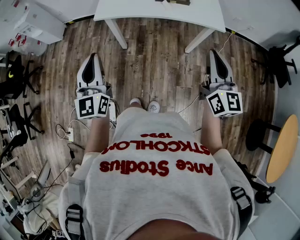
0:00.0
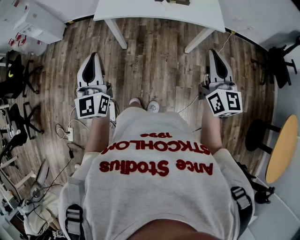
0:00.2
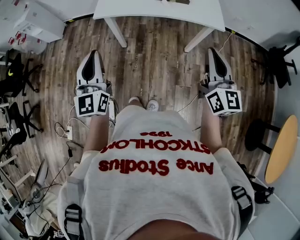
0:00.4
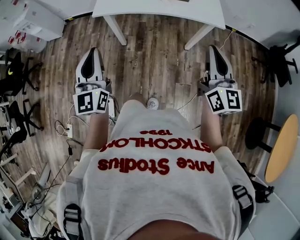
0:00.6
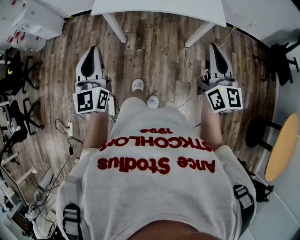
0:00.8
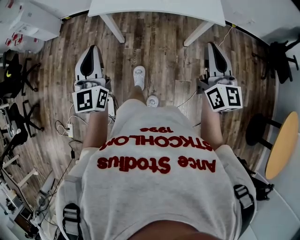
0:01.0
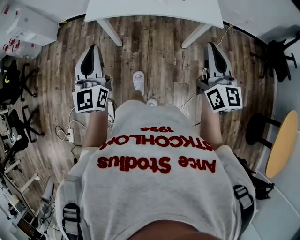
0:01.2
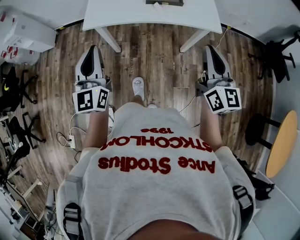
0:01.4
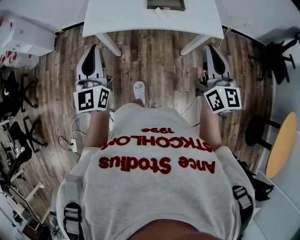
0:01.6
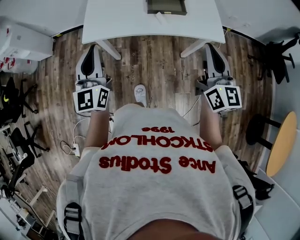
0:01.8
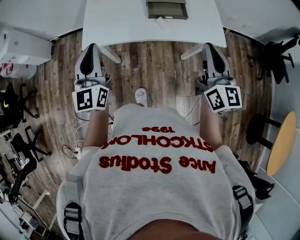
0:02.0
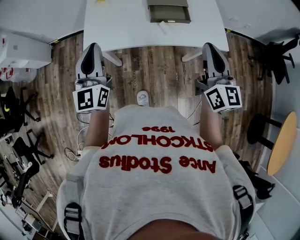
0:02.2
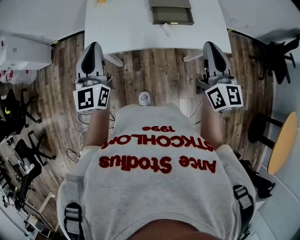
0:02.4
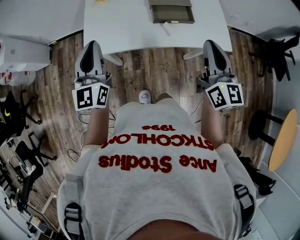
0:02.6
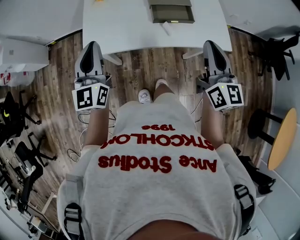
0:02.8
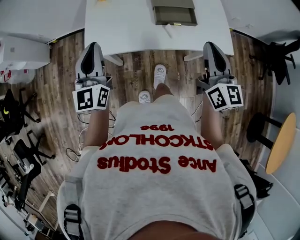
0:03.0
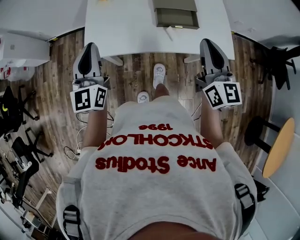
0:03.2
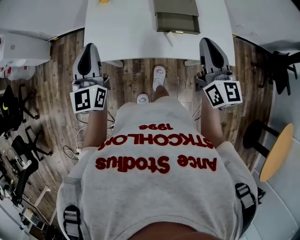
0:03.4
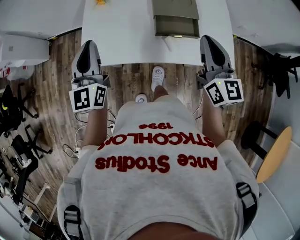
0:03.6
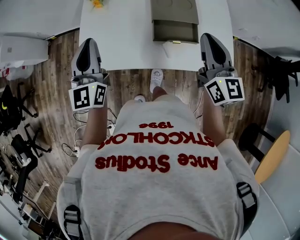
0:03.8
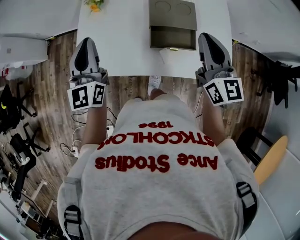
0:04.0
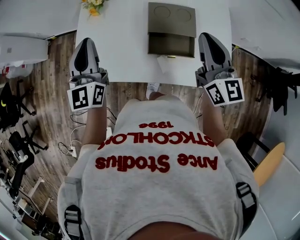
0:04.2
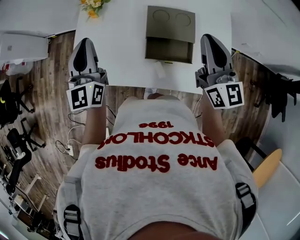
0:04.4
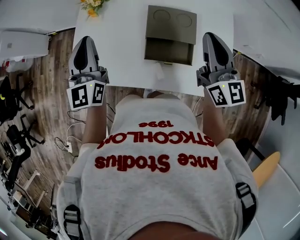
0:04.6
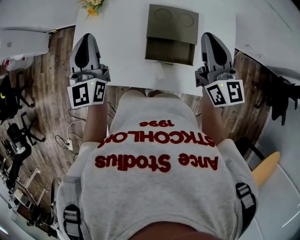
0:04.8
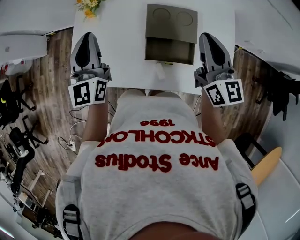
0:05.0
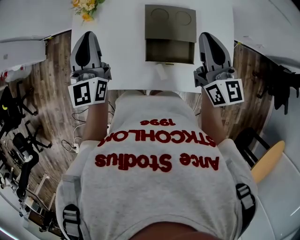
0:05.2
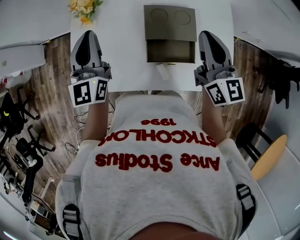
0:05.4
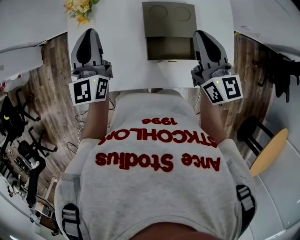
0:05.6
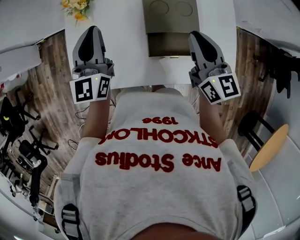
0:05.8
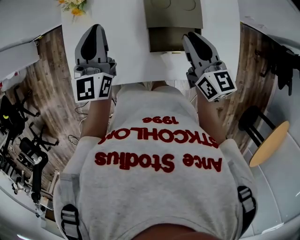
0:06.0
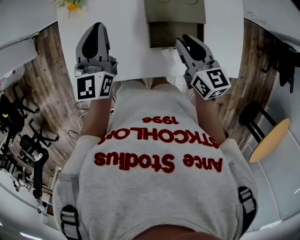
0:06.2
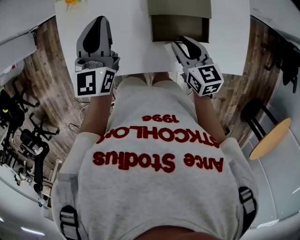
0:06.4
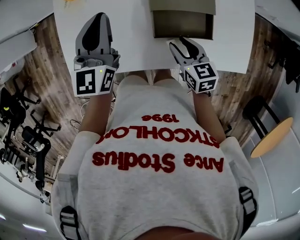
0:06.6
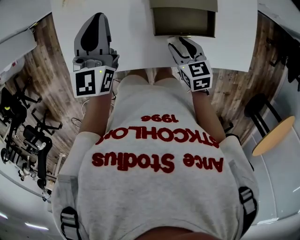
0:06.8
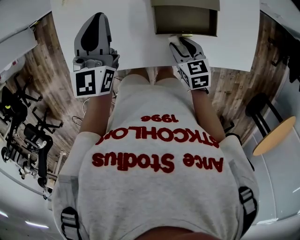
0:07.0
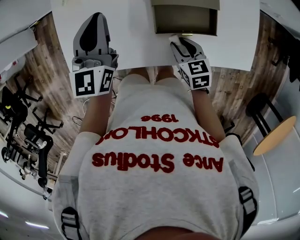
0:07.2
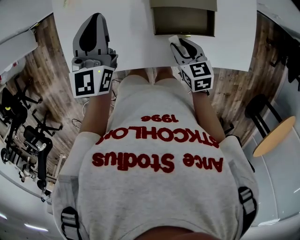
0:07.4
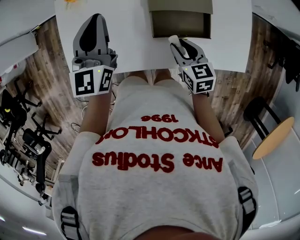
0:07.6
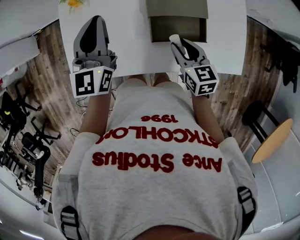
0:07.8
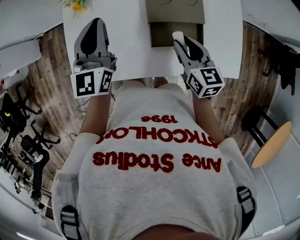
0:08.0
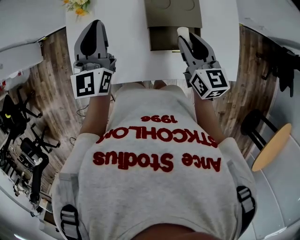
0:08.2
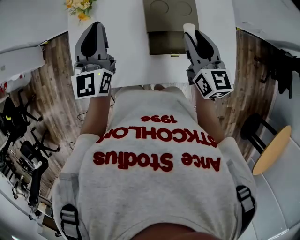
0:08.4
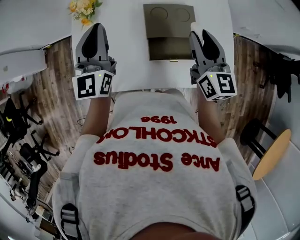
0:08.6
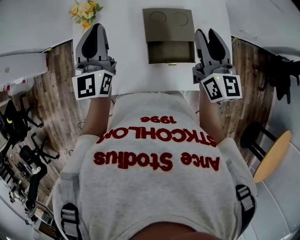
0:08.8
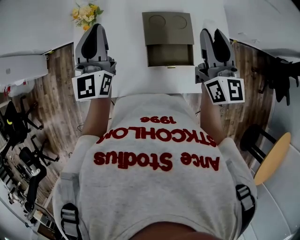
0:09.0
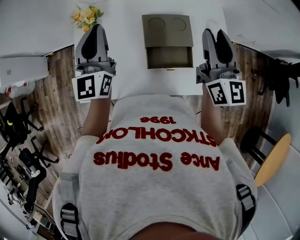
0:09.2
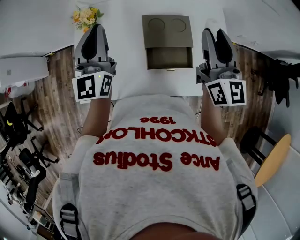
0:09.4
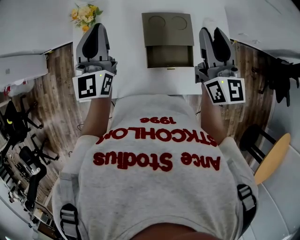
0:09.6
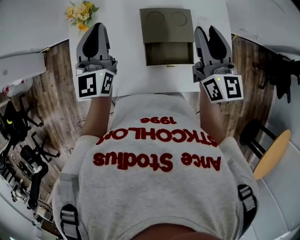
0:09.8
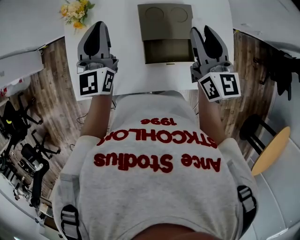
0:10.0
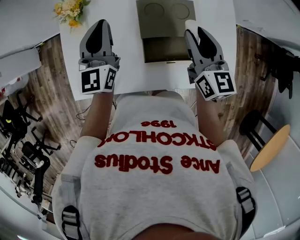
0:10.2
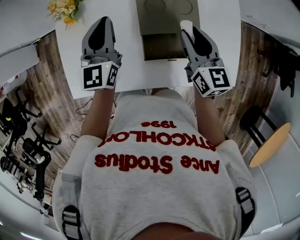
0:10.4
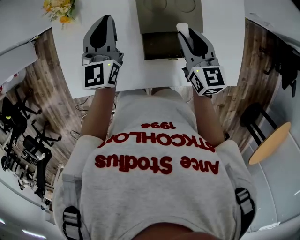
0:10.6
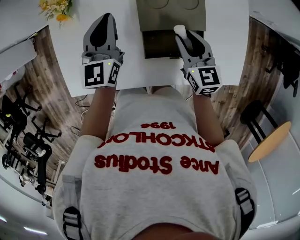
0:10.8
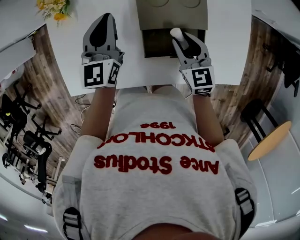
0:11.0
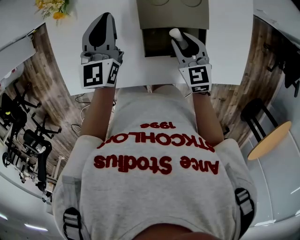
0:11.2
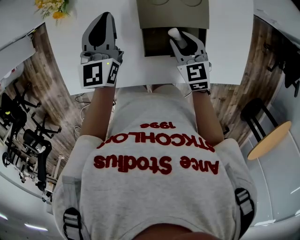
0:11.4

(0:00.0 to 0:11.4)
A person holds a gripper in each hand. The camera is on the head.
0:00.0 - 0:01.4: The grippers both shift forward by about 10 cm.
0:01.4 - 0:02.8: Both grippers move forward, some 20 cm.
0:02.8 - 0:04.2: The left gripper goes about 20 cm forward and to the right. Meanwhile the right gripper shifts some 25 cm forward.
0:04.2 - 0:05.6: The right gripper heads forward, covering roughly 5 cm; the left gripper shifts approximately 10 cm forward.
0:05.6 - 0:07.2: The left gripper goes roughly 10 cm downward. The right gripper is displaced downward and backward by roughly 30 cm, tips its fingers downward by roughly 40 degrees, and opens.
0:07.2 - 0:08.6: The left gripper heads upward, covering about 10 cm, while the right gripper moves upward and forward, some 25 cm, and tilts its fingers approximately 40 degrees upward.
0:08.6 - 0:10.0: The right gripper reaches approximately 10 cm upward, then returns. Meanwhile the left gripper shifts by approximately 5 cm.
0:10.0 - 0:11.4: The right gripper moves downward, some 25 cm, and tips its fingers downward by about 30 degrees. Meanwhile the left gripper travels downward by some 10 cm.

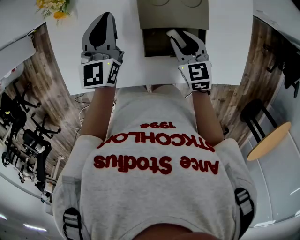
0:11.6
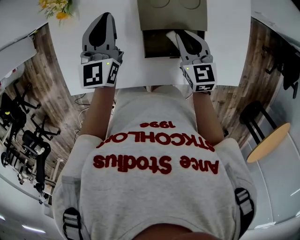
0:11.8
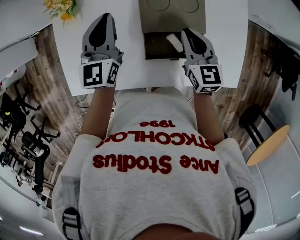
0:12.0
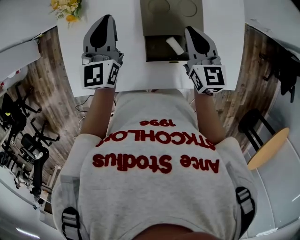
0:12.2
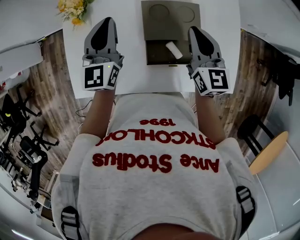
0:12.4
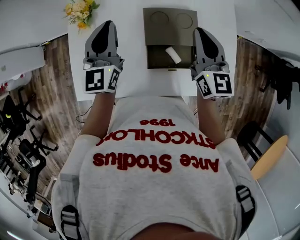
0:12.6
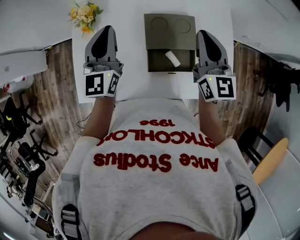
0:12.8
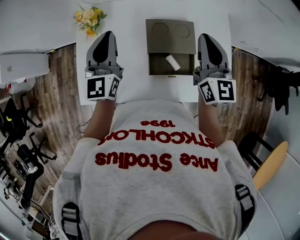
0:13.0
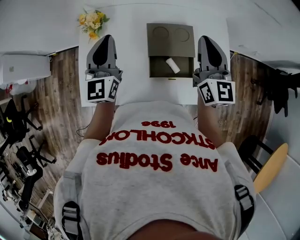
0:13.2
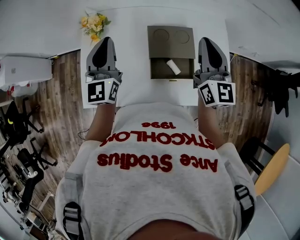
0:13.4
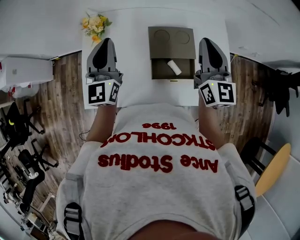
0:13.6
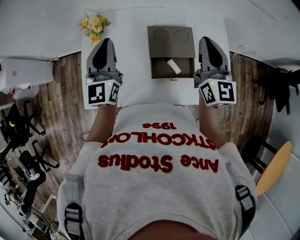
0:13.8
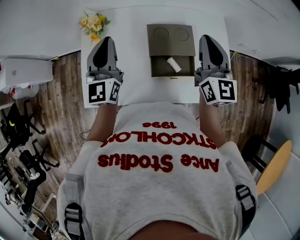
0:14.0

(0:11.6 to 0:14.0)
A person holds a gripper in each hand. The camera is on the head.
0:11.6 - 0:12.8: The left gripper travels upward by some 10 cm. Meanwhile the right gripper is displaced upward by approximately 25 cm, tilts its fingers some 40 degrees upward, and closes.
0:12.8 - 0:14.0: The grippers make only small movements.

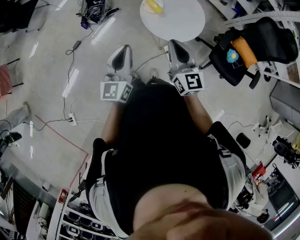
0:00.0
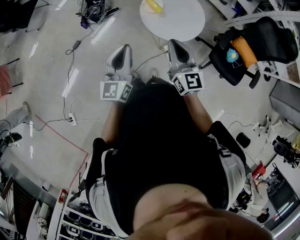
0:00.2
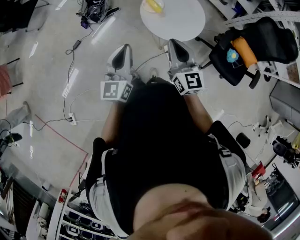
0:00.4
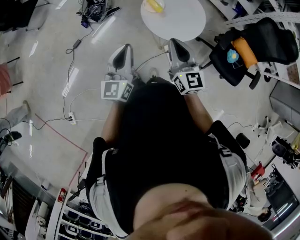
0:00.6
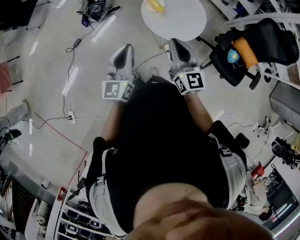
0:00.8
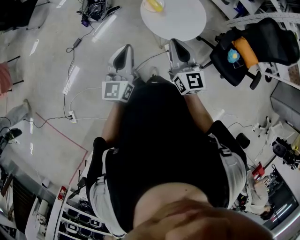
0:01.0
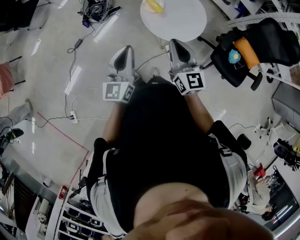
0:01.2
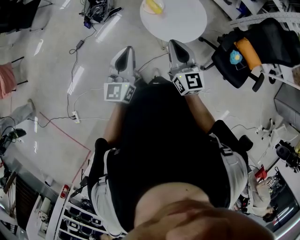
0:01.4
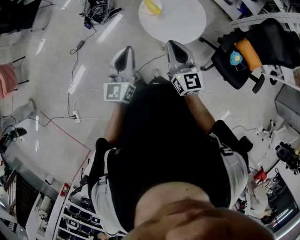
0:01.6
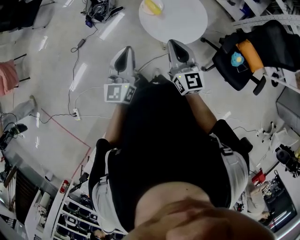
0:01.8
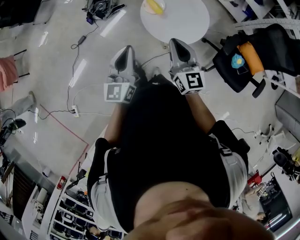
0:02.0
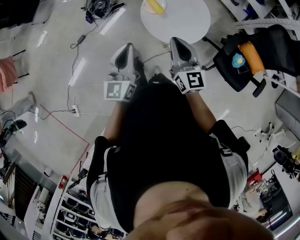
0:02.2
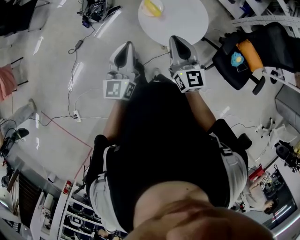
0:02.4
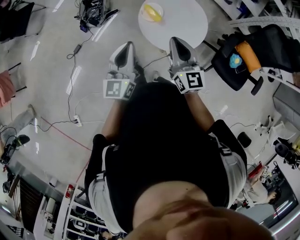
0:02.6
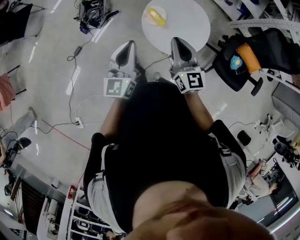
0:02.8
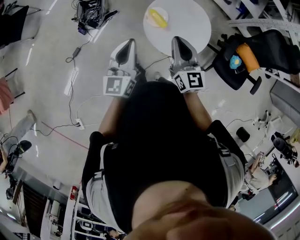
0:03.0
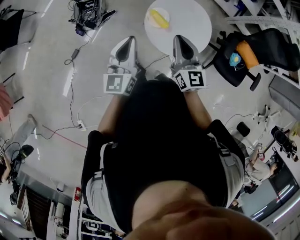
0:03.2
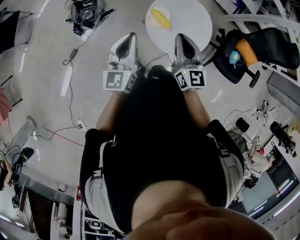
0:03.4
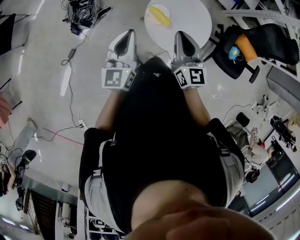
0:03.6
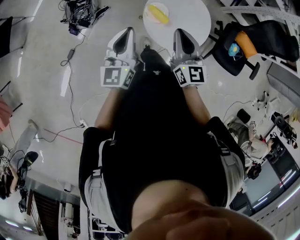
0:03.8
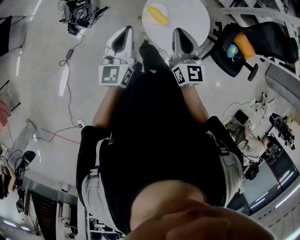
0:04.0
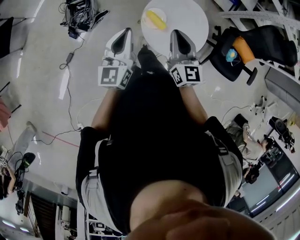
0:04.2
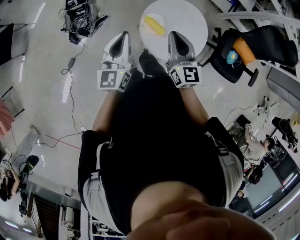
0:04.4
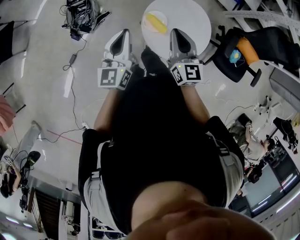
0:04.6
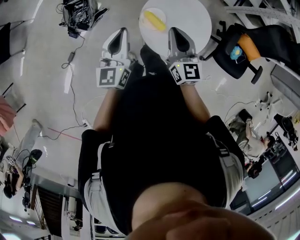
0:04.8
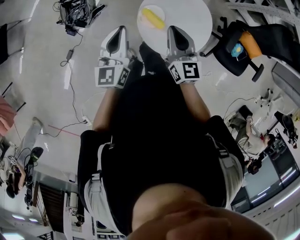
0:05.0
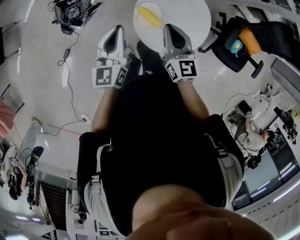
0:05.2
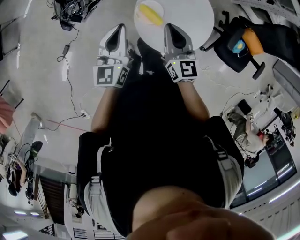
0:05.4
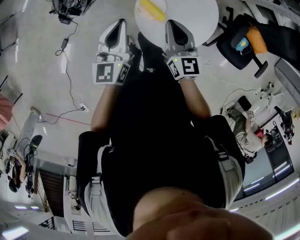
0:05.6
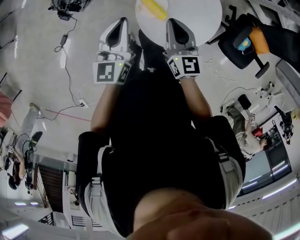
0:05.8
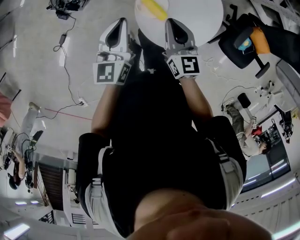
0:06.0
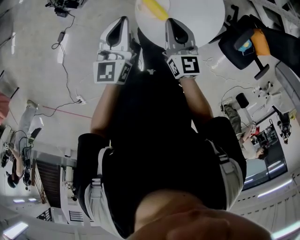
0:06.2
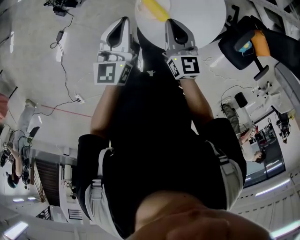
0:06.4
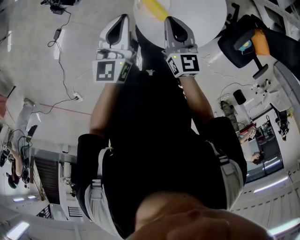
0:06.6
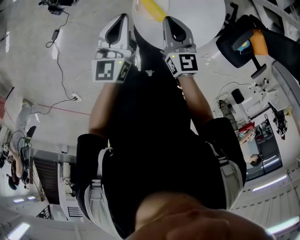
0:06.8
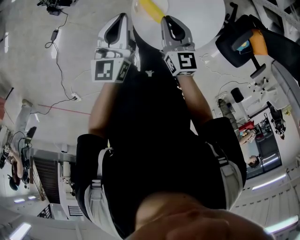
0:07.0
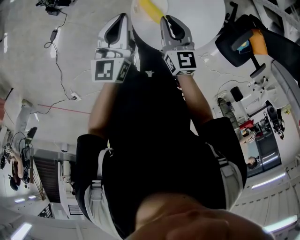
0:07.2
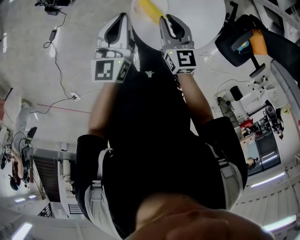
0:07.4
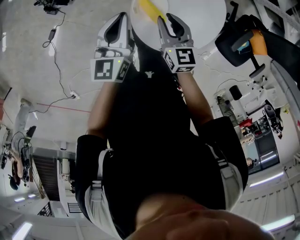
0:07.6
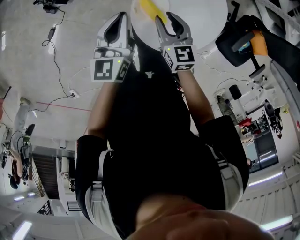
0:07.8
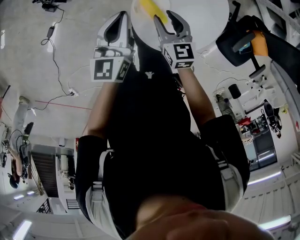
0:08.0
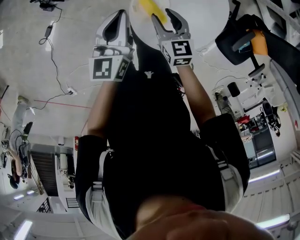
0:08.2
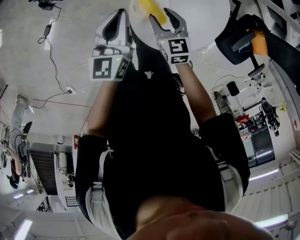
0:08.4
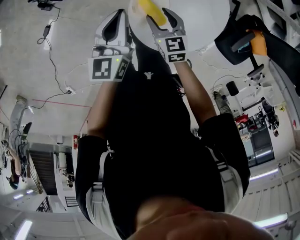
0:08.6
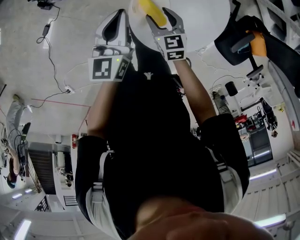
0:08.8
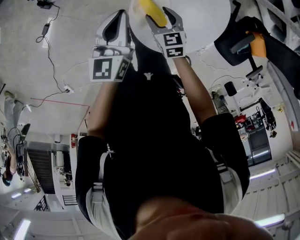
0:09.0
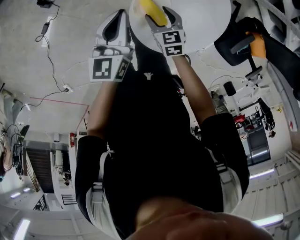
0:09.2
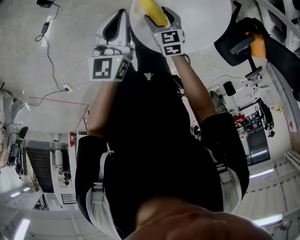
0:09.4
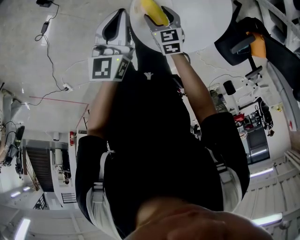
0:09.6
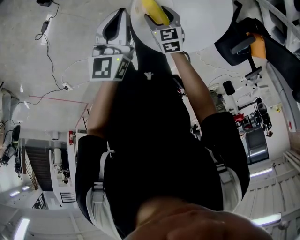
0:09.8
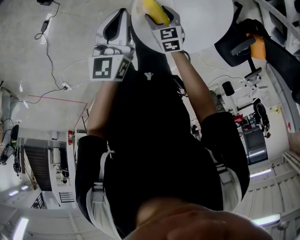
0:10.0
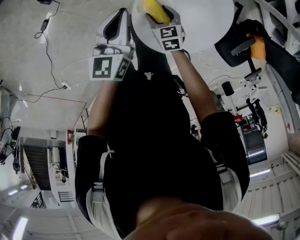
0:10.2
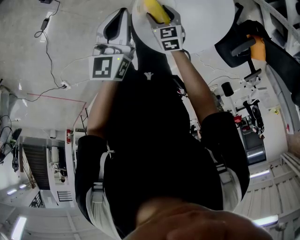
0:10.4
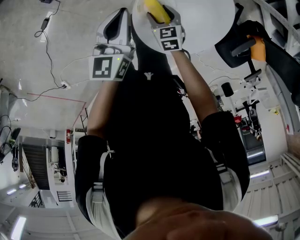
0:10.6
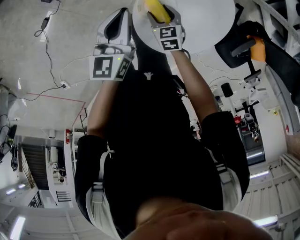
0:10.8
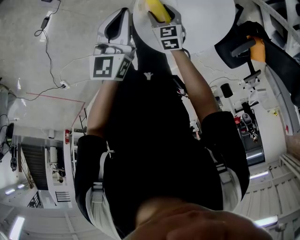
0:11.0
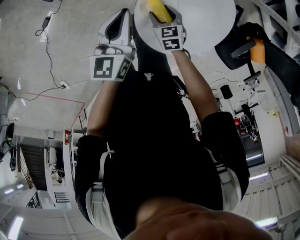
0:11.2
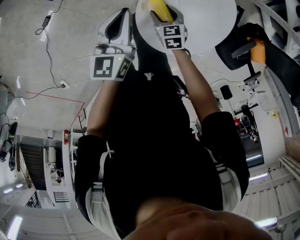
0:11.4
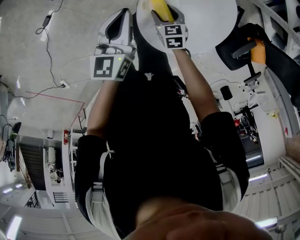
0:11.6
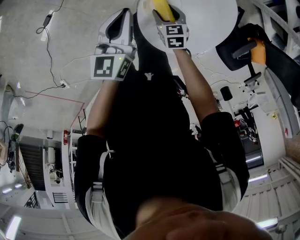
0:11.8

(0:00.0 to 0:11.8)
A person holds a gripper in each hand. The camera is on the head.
0:00.0 - 0:01.4: There are only small adjustments of the grippers.
0:01.4 - 0:03.0: Both grippers move forward, about 20 cm.
0:03.0 - 0:04.4: Both grippers travel together forward, about 10 cm.
0:04.4 - 0:06.0: The grippers both shift downward and forward by some 15 cm.
0:06.0 - 0:07.4: The right gripper travels downward by some 10 cm. The left gripper travels downward and forward by some 10 cm.
0:07.4 - 0:08.8: The right gripper goes about 10 cm downward, and opens up.
0:08.8 - 0:10.4: The right gripper moves downward, approximately 5 cm.
0:10.4 - 0:11.8: The grippers move only a little.
